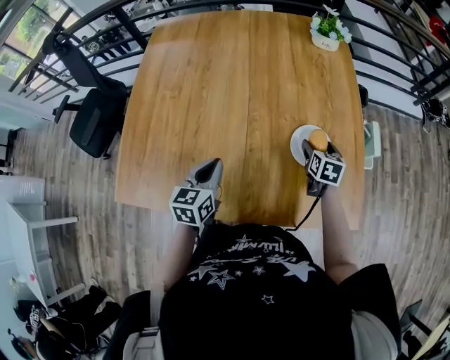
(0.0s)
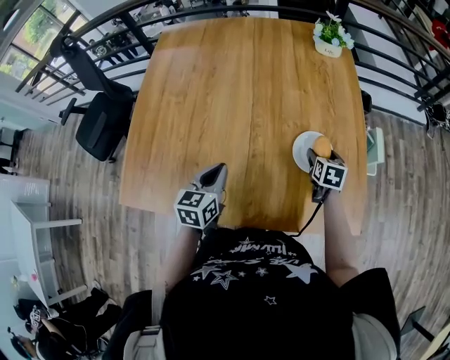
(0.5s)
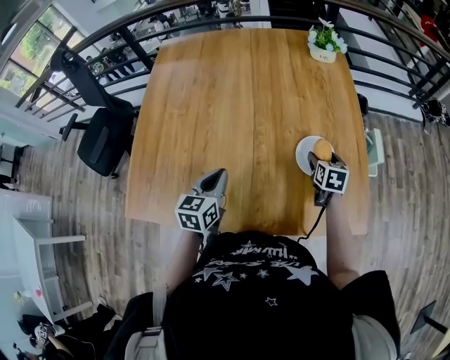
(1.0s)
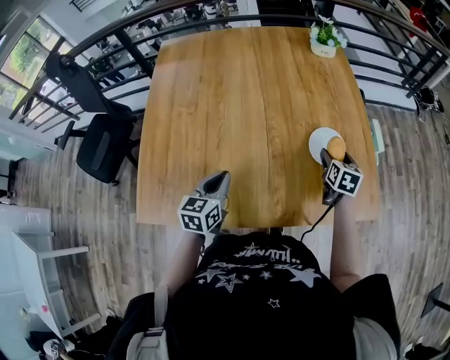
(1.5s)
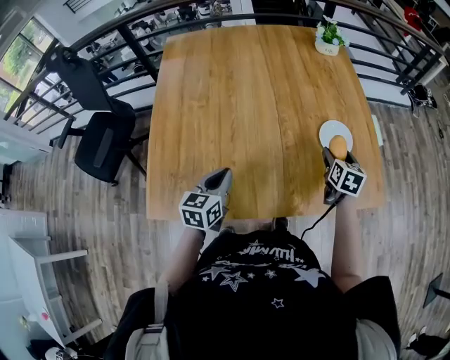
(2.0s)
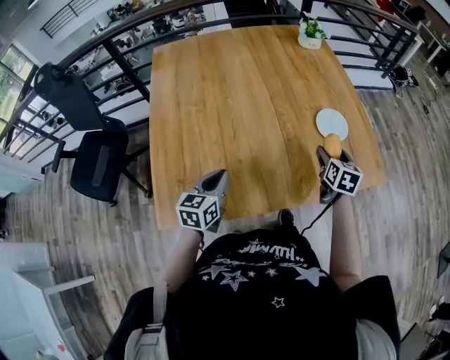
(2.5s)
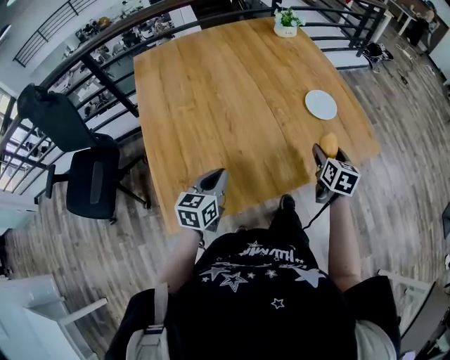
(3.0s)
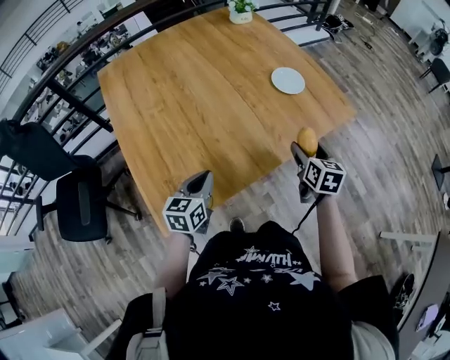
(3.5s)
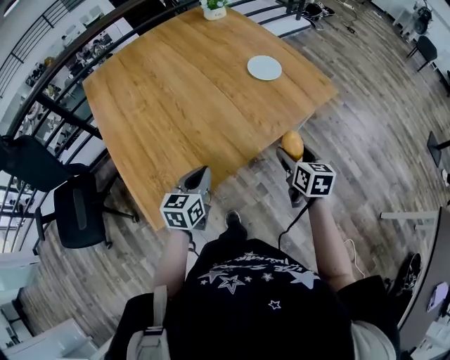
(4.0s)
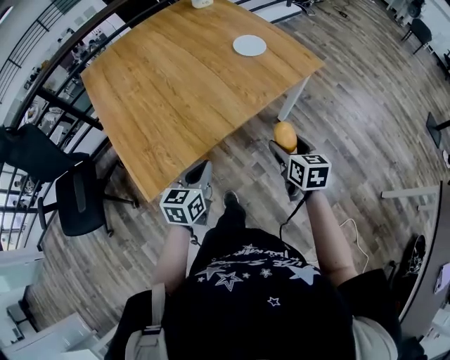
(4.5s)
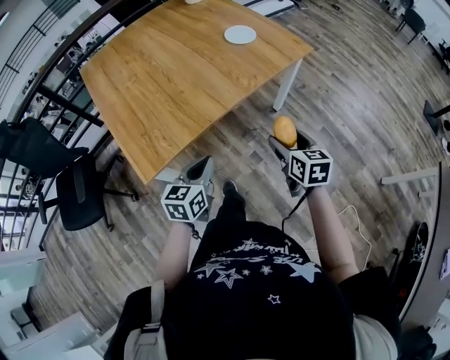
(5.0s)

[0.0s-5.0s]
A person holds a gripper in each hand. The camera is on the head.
0.0s to 2.5s: The right gripper goes some 20 cm backward, to the left and upward. The left gripper heads to the left and backward, covering some 20 cm.
2.5s to 5.0s: The right gripper goes about 40 cm backward, while the left gripper goes roughly 30 cm backward and to the right, and swivels some 30 degrees.

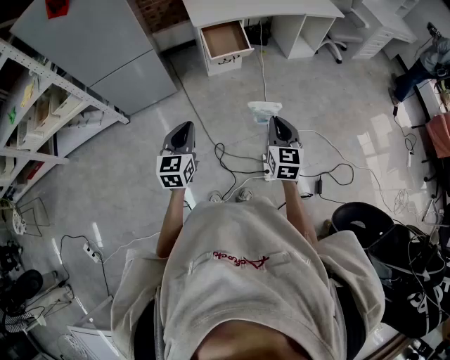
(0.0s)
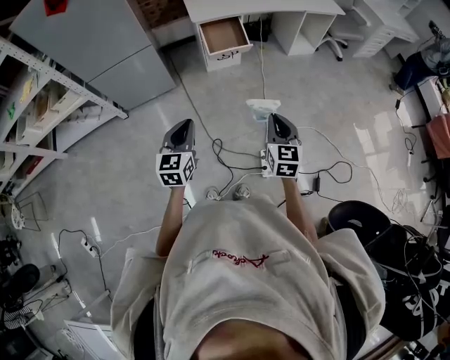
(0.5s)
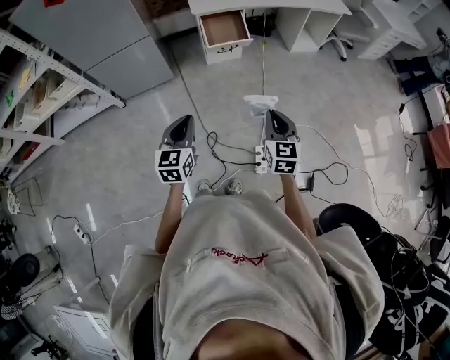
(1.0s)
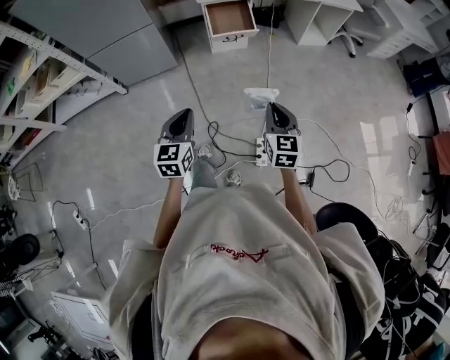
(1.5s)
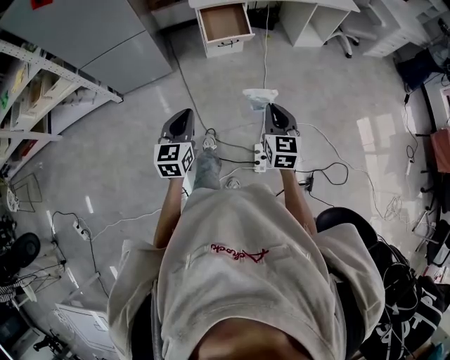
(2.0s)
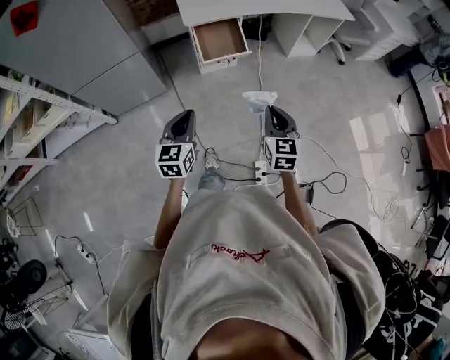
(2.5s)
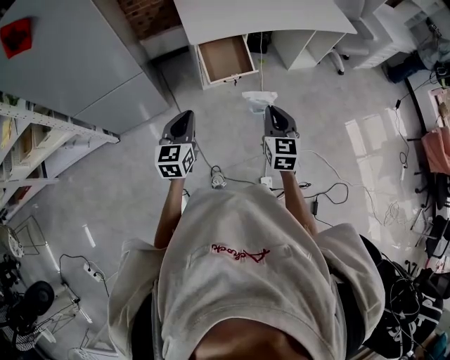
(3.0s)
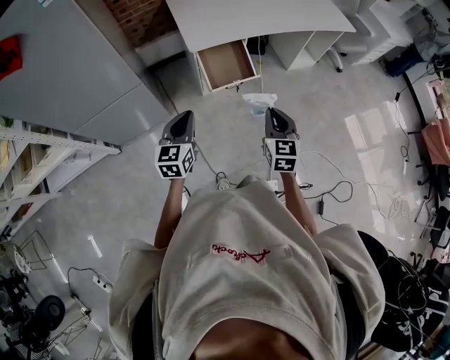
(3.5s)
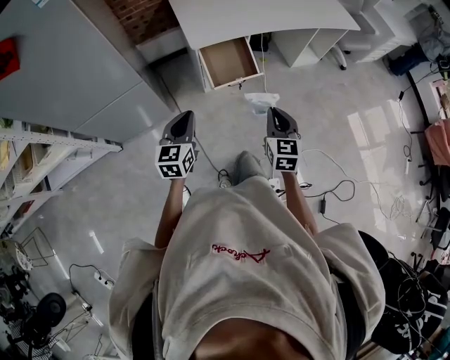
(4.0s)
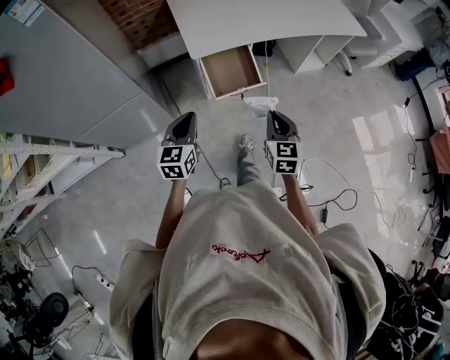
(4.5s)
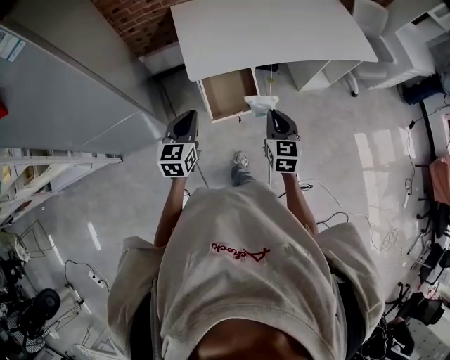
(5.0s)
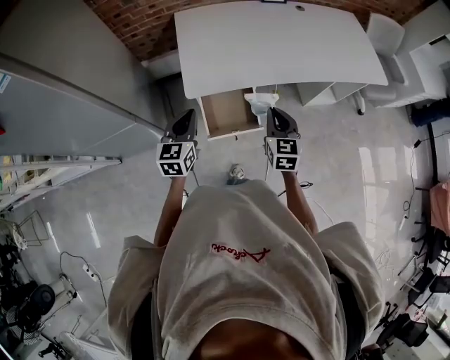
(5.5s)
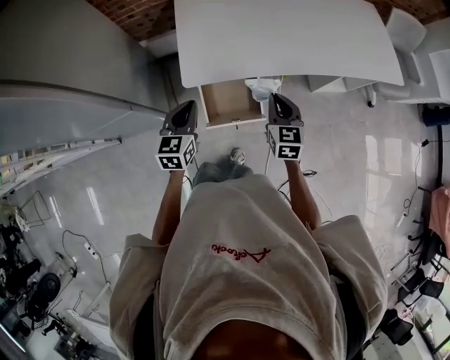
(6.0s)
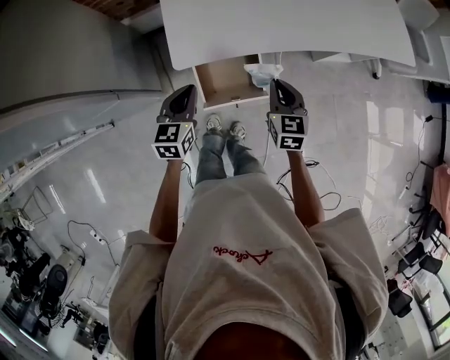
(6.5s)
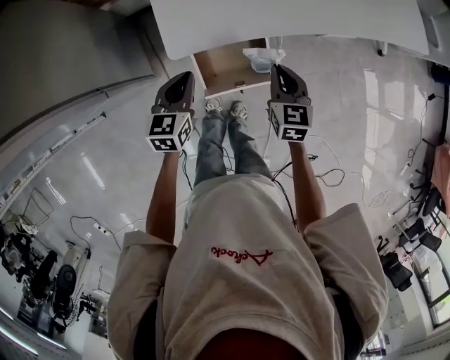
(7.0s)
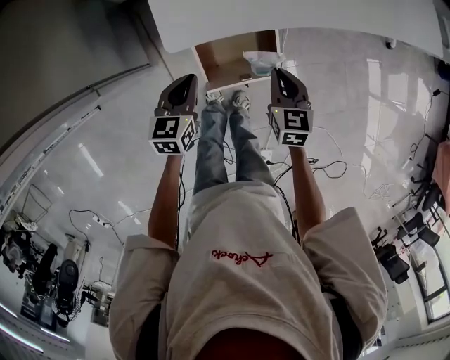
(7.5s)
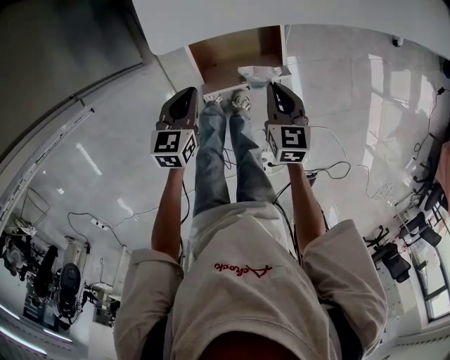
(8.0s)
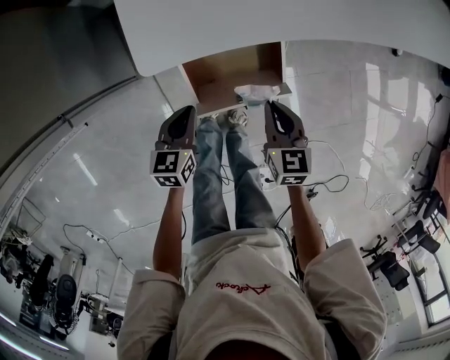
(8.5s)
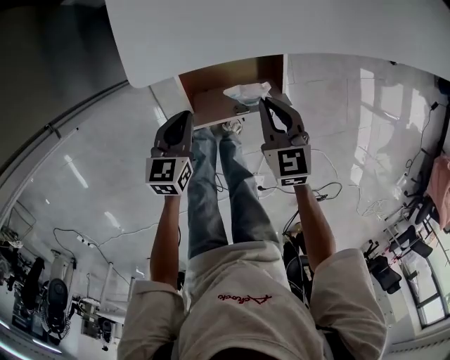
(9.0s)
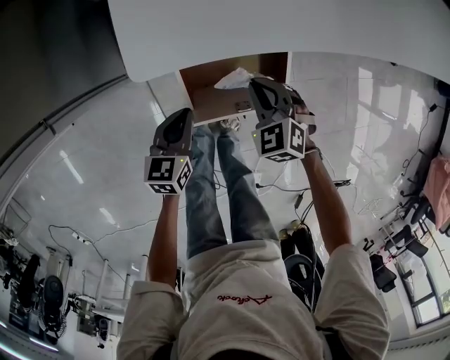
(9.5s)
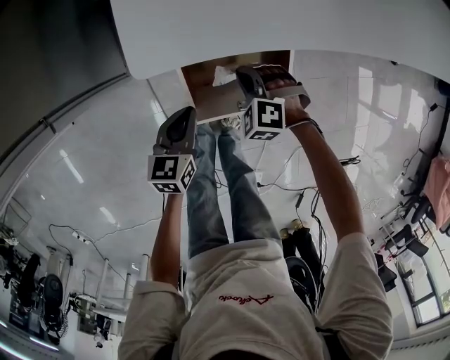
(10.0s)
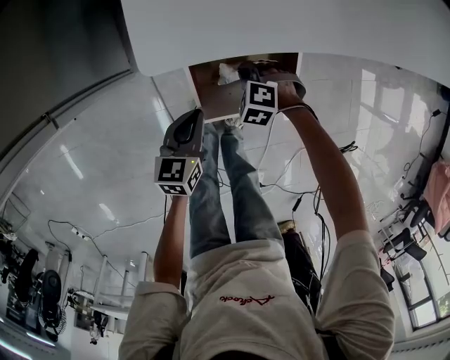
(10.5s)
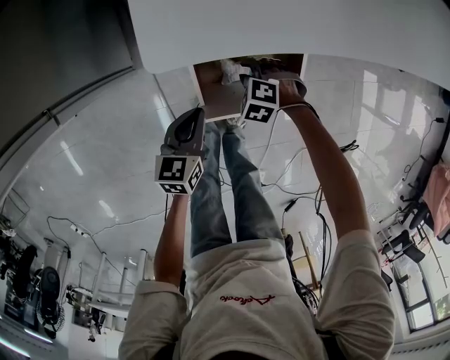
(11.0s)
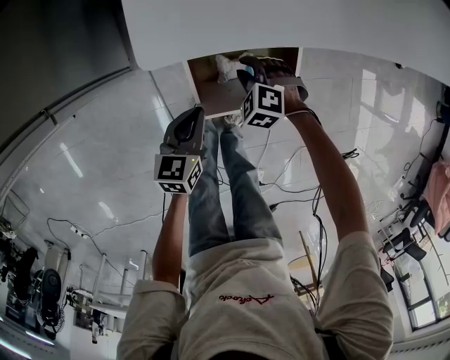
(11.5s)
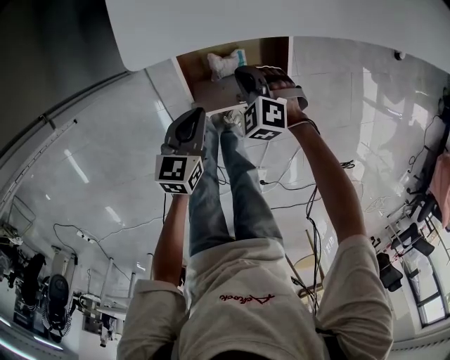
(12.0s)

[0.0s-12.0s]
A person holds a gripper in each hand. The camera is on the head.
0.0s to 2.0s: The left gripper moves to the right and forward, about 10 cm; the right gripper is displaced forward by approximately 5 cm.
2.0s to 4.0s: Both grippers move forward and to the left, about 30 cm.
4.0s to 6.0s: Both grippers move forward, some 35 cm.
6.0s to 8.0s: The grippers both shift downward by about 25 cm. The left gripper changes its angle by roughly 20 degrees.
8.0s to 10.0s: The right gripper moves downward, to the left and forward, some 20 cm, and rolls counterclockwise, seen from behind, by approximately 70 degrees. The left gripper shifts roughly 5 cm downward.
10.0s to 12.0s: The right gripper opens and closes again.

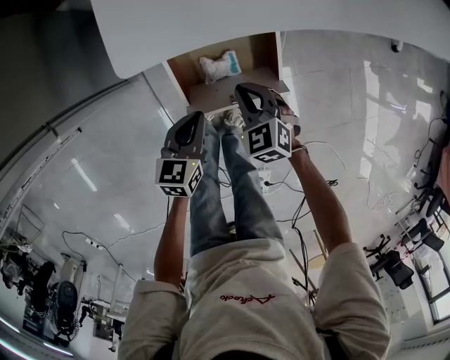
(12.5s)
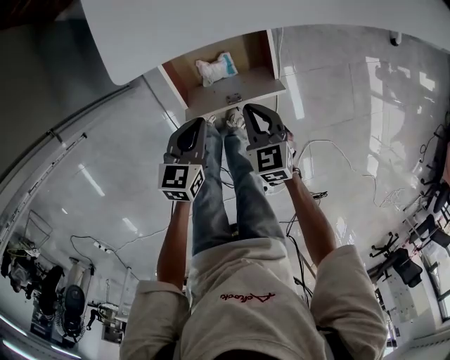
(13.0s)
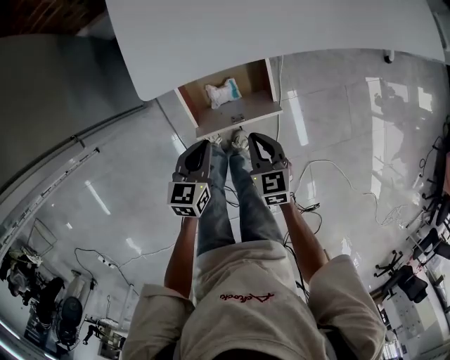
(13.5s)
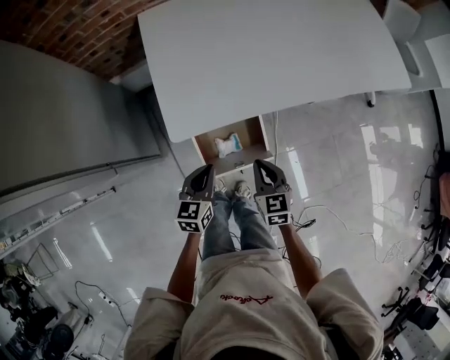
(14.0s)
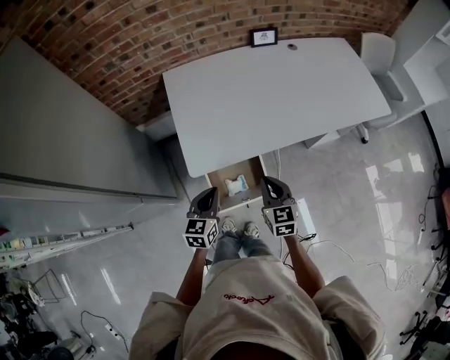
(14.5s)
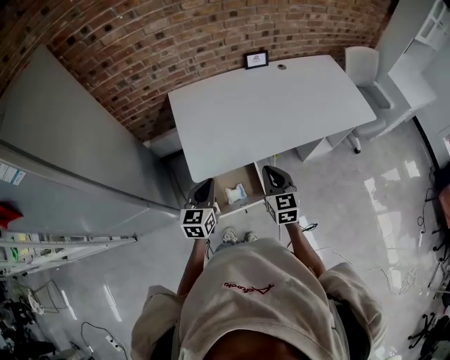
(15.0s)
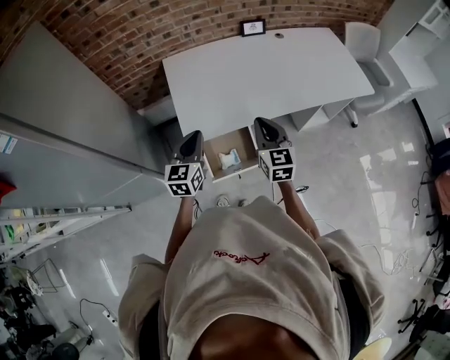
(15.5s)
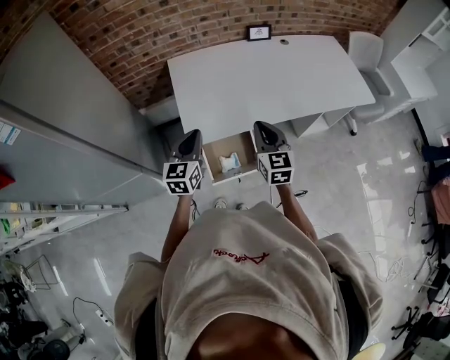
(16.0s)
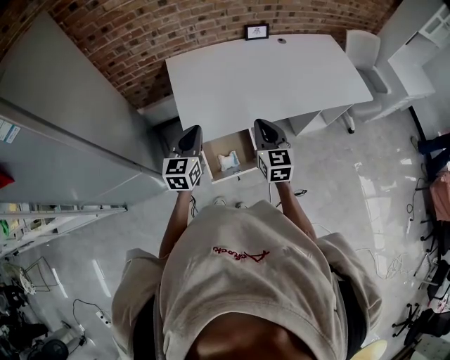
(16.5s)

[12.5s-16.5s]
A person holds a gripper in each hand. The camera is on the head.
12.5s to 14.5s: Both grippers travel together upward, approximately 30 cm. The right gripper swivels approximately 40 degrees.
14.5s to 16.5s: Both grippers travel together upward, approximately 15 cm.

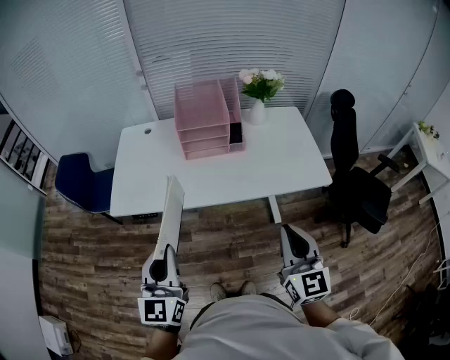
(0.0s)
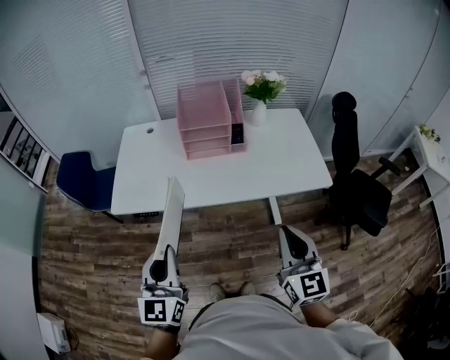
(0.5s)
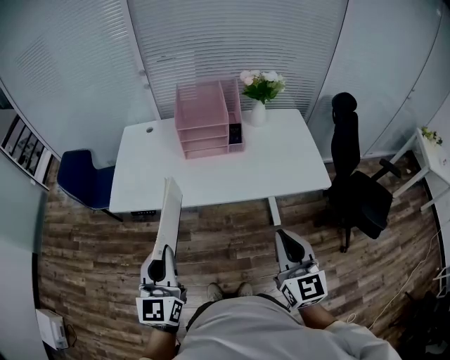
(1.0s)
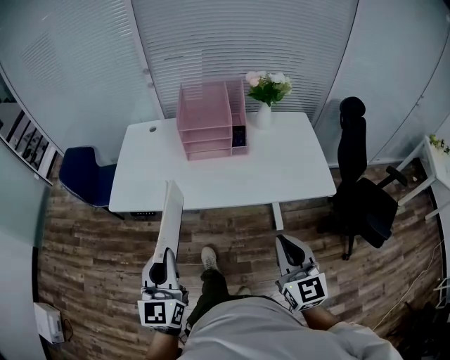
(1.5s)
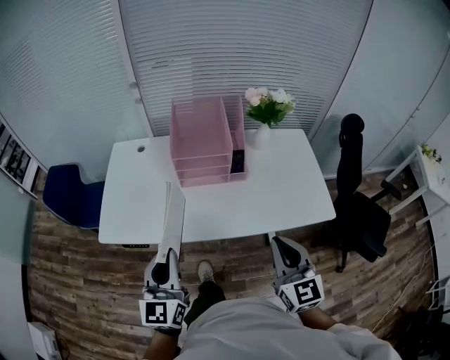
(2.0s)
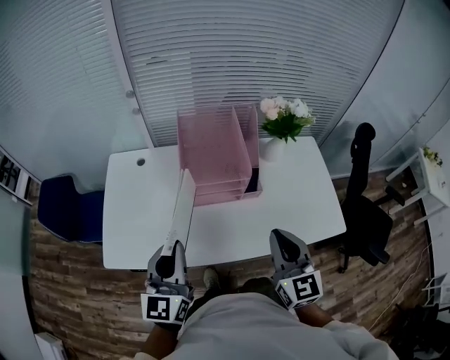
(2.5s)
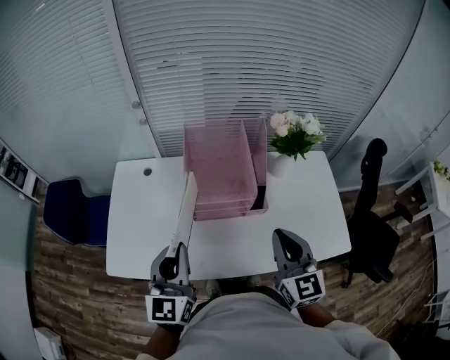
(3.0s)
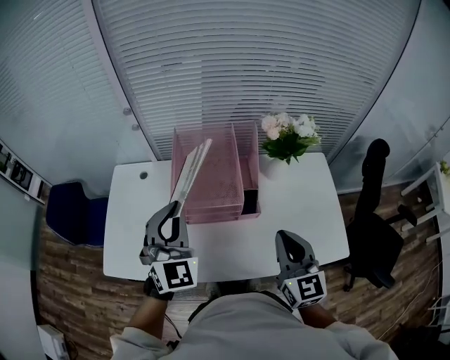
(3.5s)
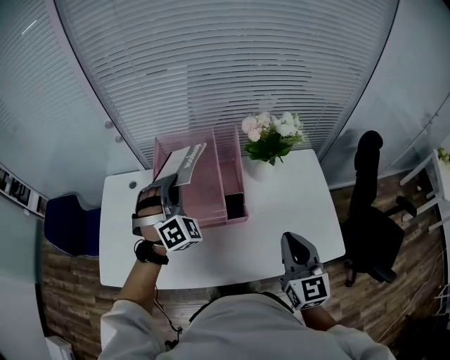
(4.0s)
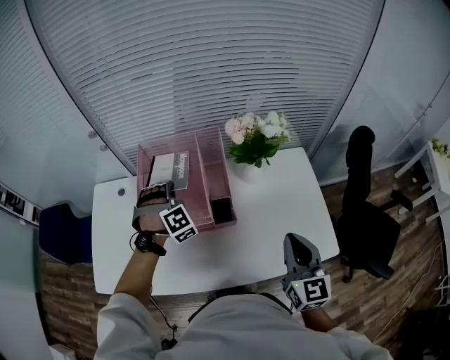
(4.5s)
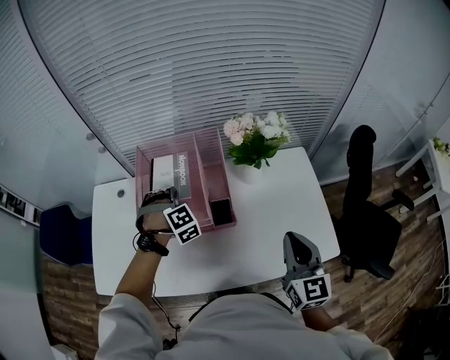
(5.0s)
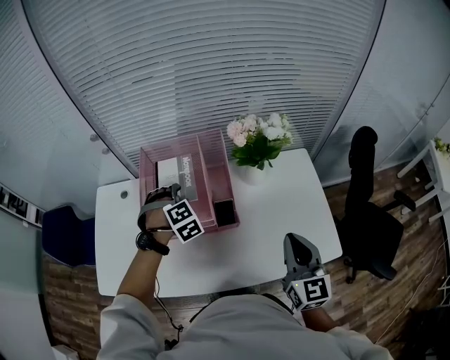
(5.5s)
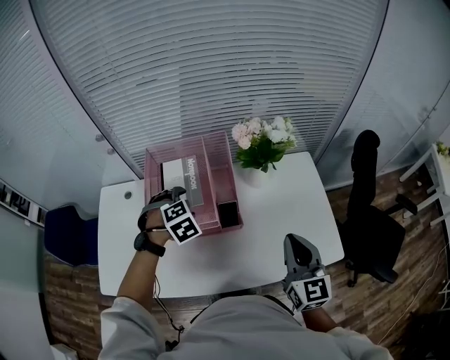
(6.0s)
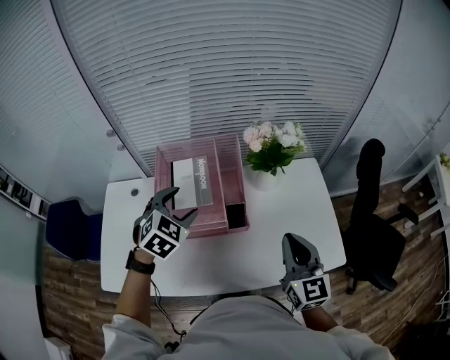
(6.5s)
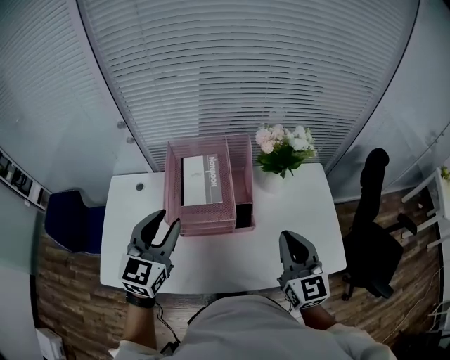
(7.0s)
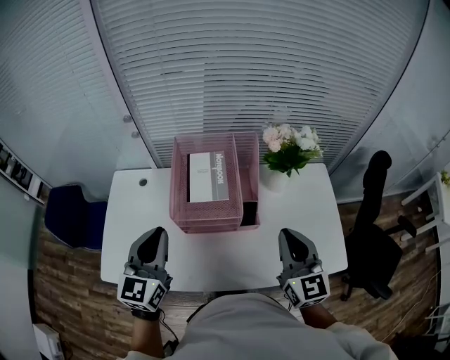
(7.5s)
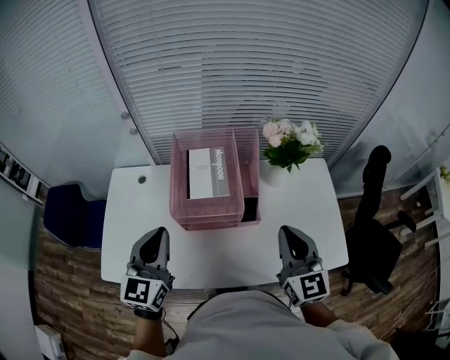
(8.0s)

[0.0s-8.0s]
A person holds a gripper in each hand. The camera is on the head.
0.0s to 2.0s: Both grippers travel together forward, some 15 cm.
2.0s to 4.0s: The left gripper shifts roughly 40 cm forward, and rotates around the line of its fingers by approximately 80 degrees, clockwise from behind, while the right gripper moves forward and to the right, roughly 25 cm.
4.0s to 6.0s: The left gripper moves downward, about 10 cm, points its fingers approximately 50 degrees further downward, and opens its fingers.
6.0s to 8.0s: The left gripper shifts approximately 25 cm backward, upward and to the left, tilts its fingers approximately 60 degrees upward, and closes up. The right gripper goes roughly 10 cm to the left.
